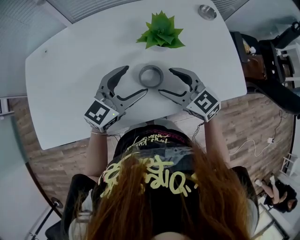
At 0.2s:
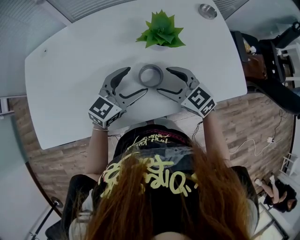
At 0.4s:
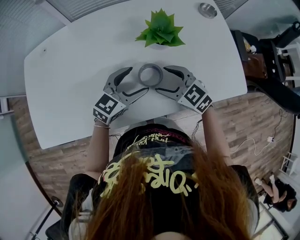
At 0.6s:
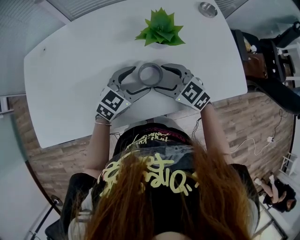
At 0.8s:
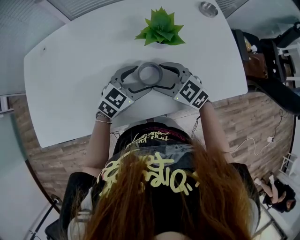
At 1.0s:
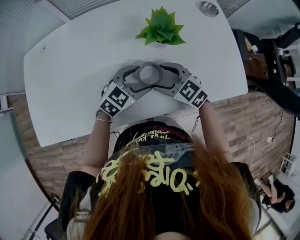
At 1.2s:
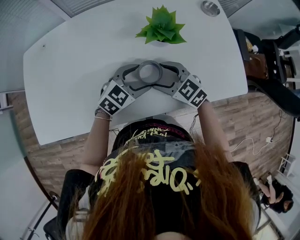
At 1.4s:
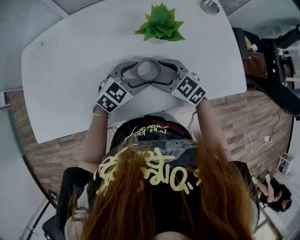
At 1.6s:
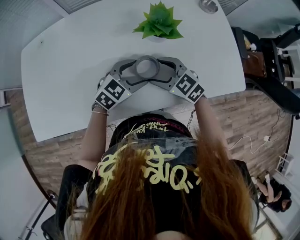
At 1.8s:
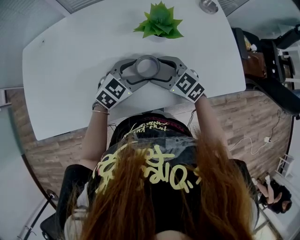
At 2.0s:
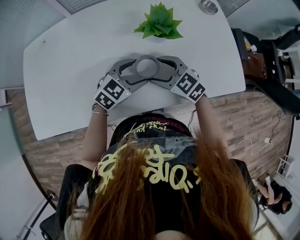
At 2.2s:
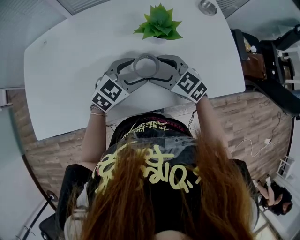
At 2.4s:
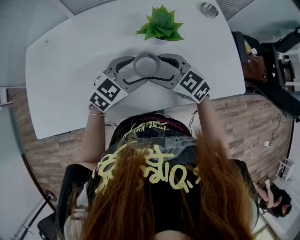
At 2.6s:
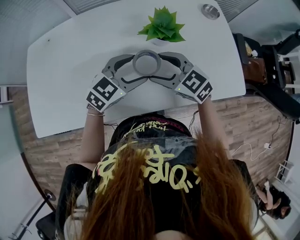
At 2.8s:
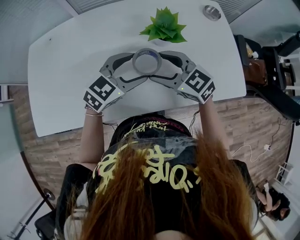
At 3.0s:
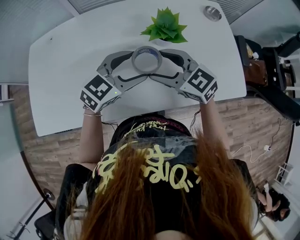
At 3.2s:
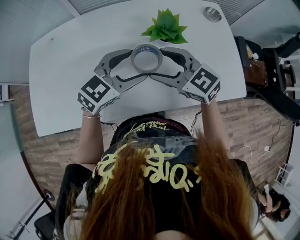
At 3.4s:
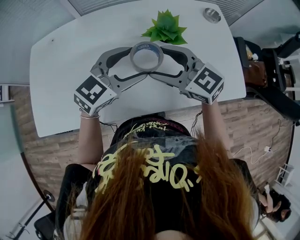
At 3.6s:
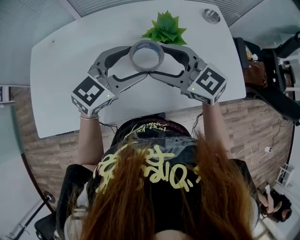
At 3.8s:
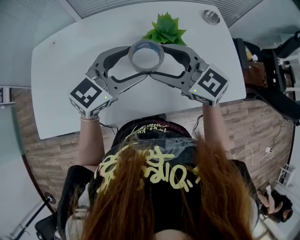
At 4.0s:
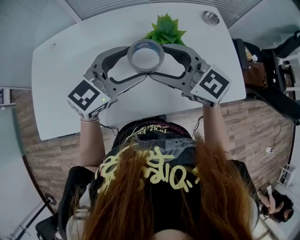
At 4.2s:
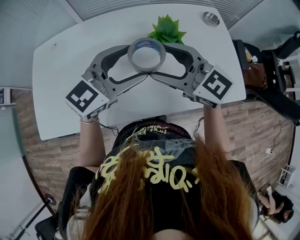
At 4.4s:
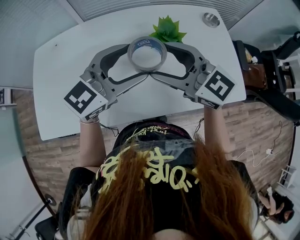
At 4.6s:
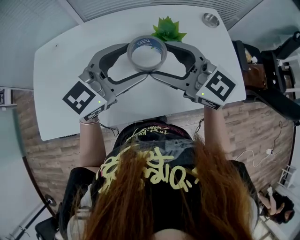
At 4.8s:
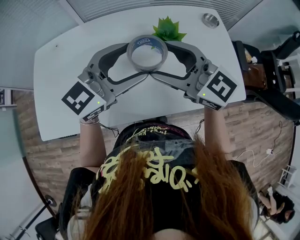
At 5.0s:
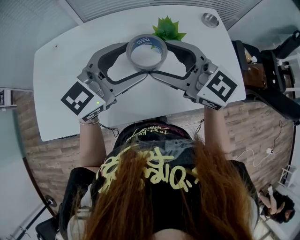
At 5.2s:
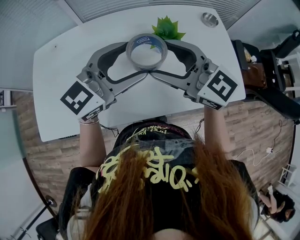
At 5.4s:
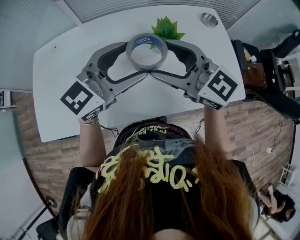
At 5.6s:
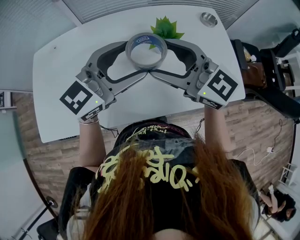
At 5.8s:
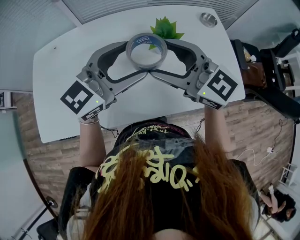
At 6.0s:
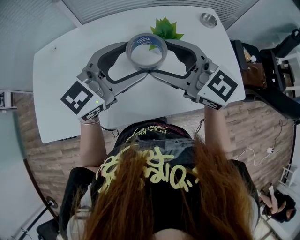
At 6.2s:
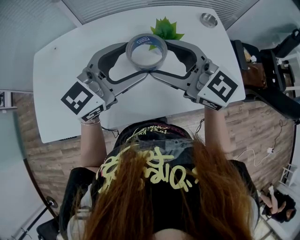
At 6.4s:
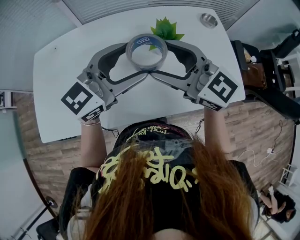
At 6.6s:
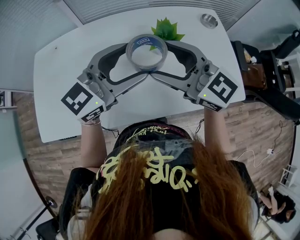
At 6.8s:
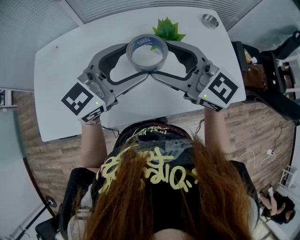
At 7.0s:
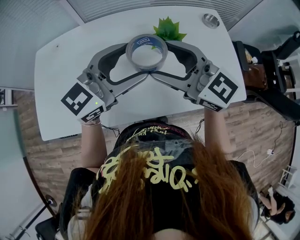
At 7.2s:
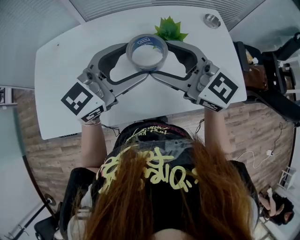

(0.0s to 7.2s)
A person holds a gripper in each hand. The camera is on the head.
0.0s - 1.4s: The right gripper goes about 5 cm downward, while the left gripper is displaced downward by roughly 10 cm, and swivels about 30 degrees.
1.4s - 2.8s: Both grippers move upward, about 10 cm.
2.8s - 4.4s: Both grippers move upward, some 15 cm.
4.4s - 5.8s: The grippers stay close to where they were, moving slightly.
5.8s - 7.2s: The two grippers keep their place.

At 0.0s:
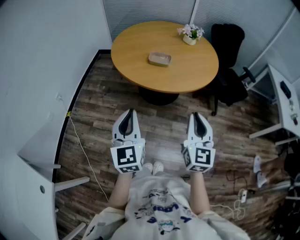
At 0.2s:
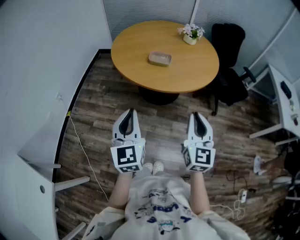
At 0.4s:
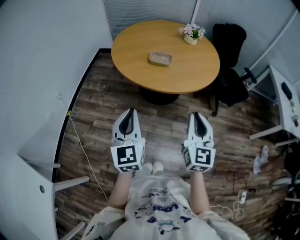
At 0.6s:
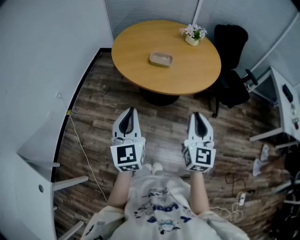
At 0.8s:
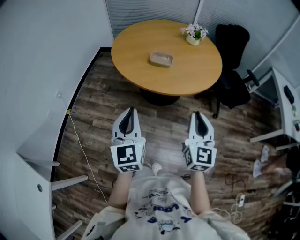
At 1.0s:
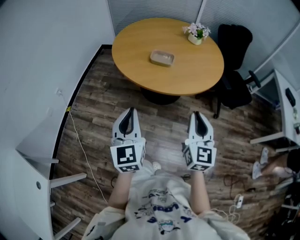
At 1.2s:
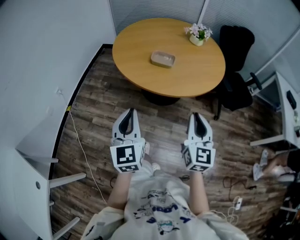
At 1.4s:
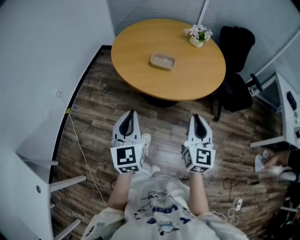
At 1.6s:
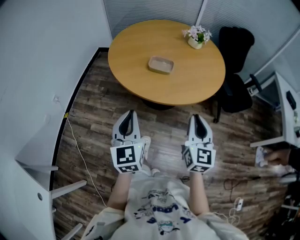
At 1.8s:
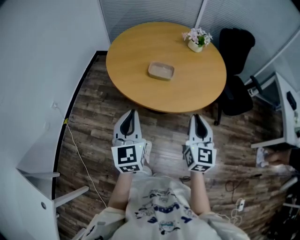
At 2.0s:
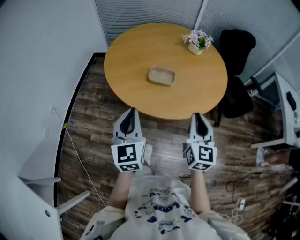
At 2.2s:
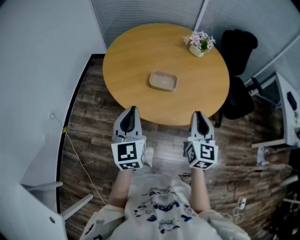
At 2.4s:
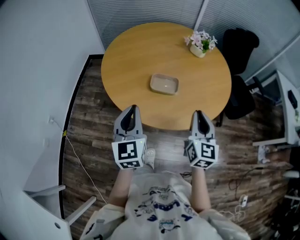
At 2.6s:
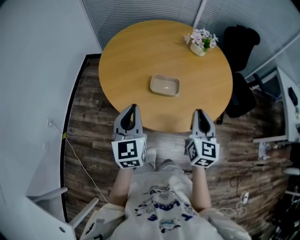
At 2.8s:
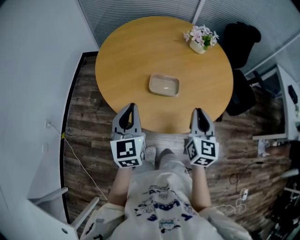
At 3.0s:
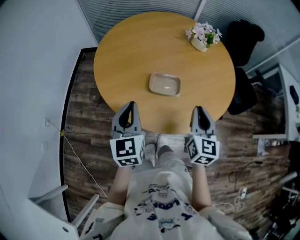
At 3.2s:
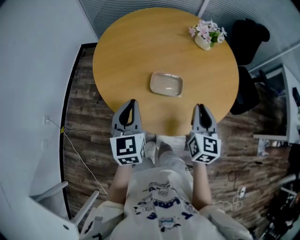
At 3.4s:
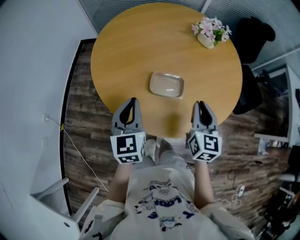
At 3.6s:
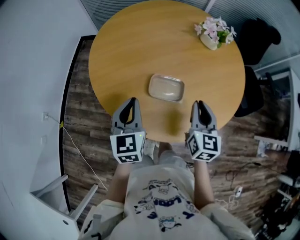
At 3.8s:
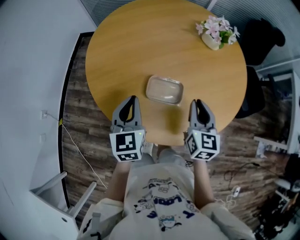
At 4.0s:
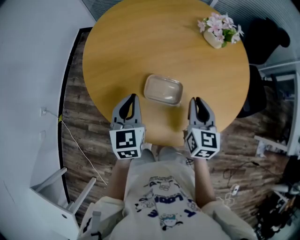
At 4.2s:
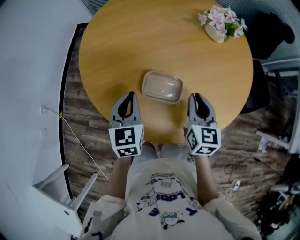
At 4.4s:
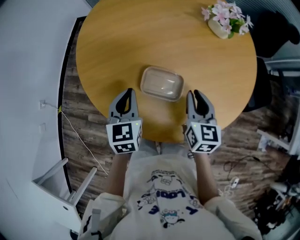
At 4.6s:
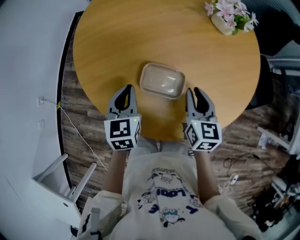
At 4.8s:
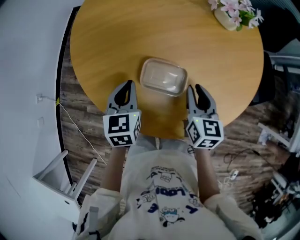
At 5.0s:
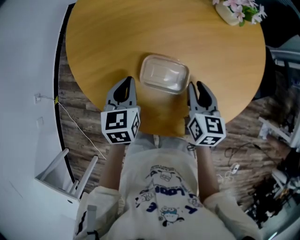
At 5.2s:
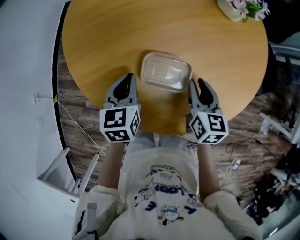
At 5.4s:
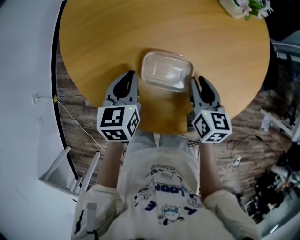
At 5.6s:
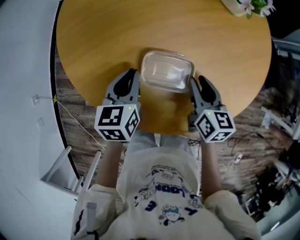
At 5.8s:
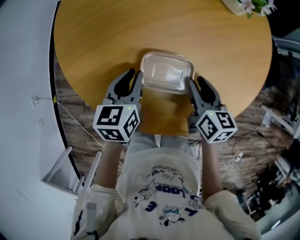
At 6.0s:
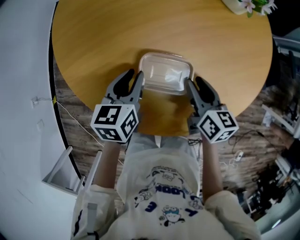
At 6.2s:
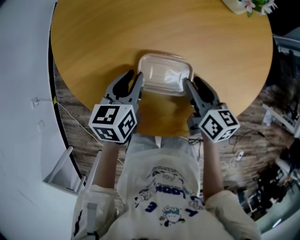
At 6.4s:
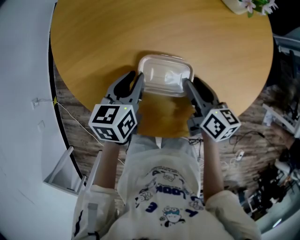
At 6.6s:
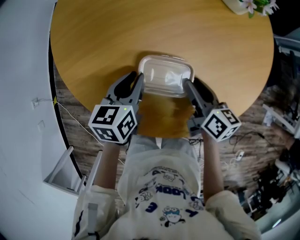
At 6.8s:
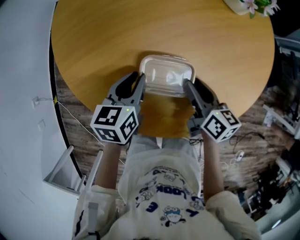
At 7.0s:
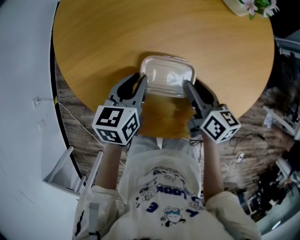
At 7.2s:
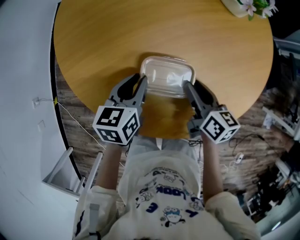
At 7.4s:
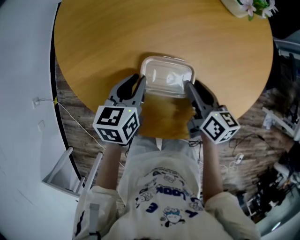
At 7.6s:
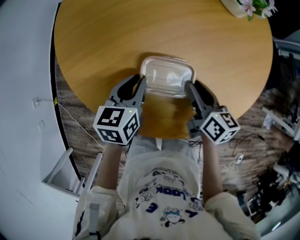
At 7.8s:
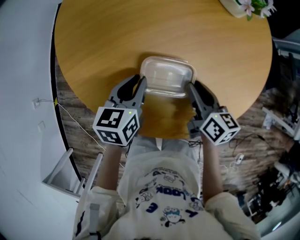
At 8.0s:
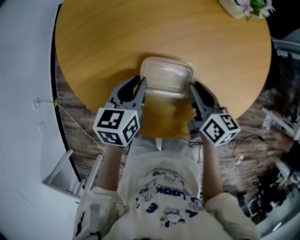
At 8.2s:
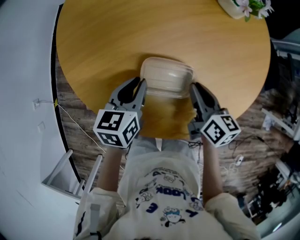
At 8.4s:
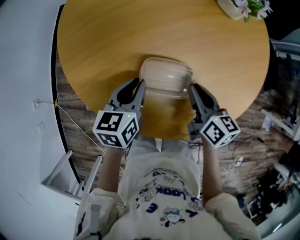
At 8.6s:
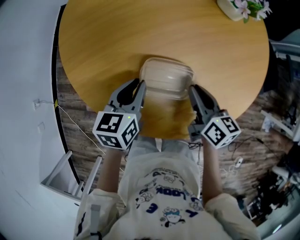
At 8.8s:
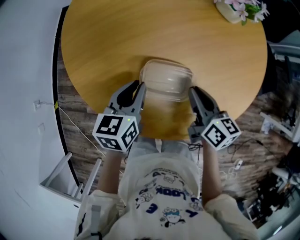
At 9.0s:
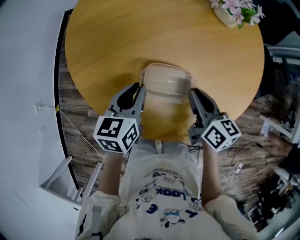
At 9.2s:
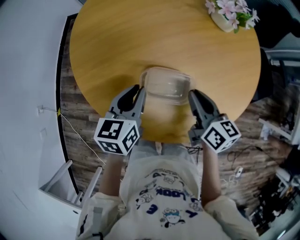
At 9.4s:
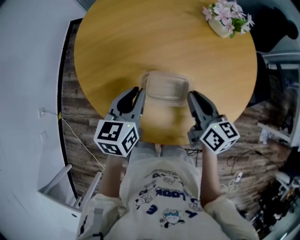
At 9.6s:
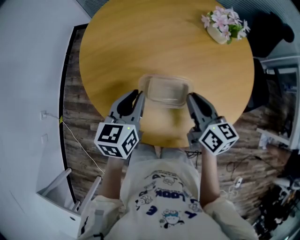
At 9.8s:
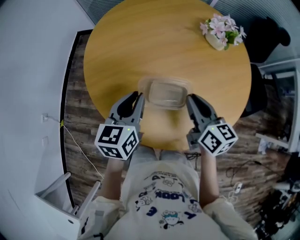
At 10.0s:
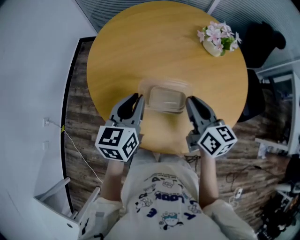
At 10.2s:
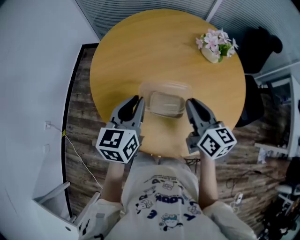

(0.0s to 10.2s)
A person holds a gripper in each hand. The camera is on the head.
0.0s - 1.4s: The grippers both shift forward by some 5 cm.
1.4s - 3.0s: Both grippers move forward, some 30 cm.
3.0s - 4.4s: The right gripper goes some 20 cm forward and downward, and swivels roughly 20 degrees, while the left gripper moves downward and forward, approximately 15 cm.
4.4s - 5.8s: The two grippers go about 5 cm downward. The right gripper turns by some 20 degrees; the left gripper turns by roughly 20 degrees.
5.8s - 8.8s: The grippers move only a little.
8.8s - 10.2s: The two grippers go some 15 cm upward.

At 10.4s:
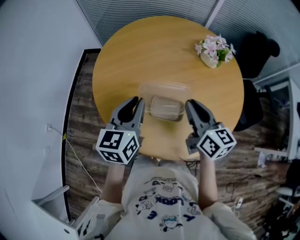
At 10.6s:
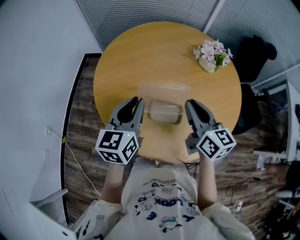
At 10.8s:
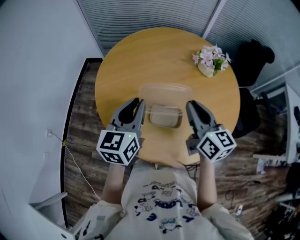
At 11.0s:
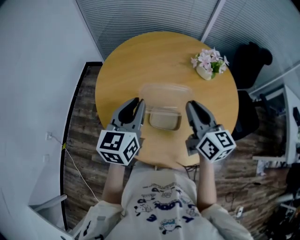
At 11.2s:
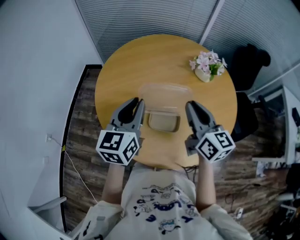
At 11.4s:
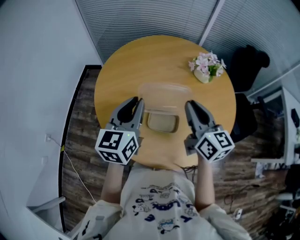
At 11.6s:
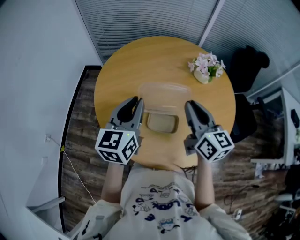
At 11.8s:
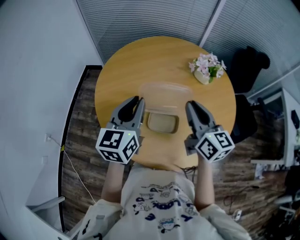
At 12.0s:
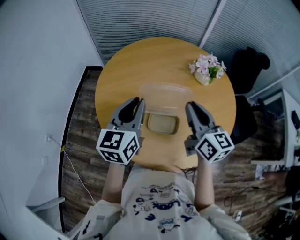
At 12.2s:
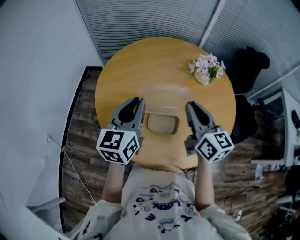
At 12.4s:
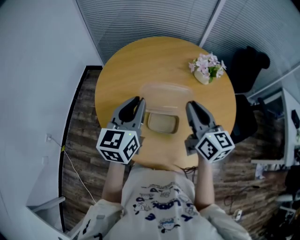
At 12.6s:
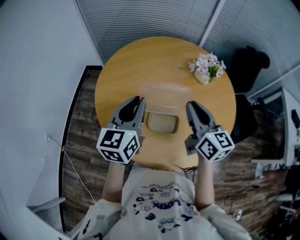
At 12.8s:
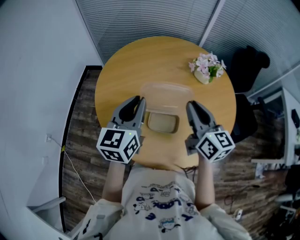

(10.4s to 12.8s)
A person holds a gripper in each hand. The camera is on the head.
10.4s - 11.6s: The grippers both shift upward by some 5 cm.
11.6s - 12.8s: Both grippers stay put.

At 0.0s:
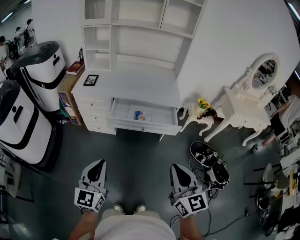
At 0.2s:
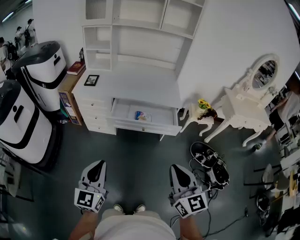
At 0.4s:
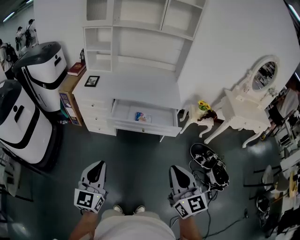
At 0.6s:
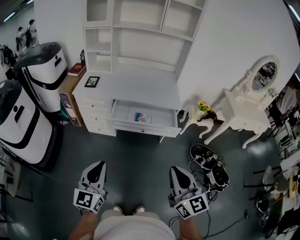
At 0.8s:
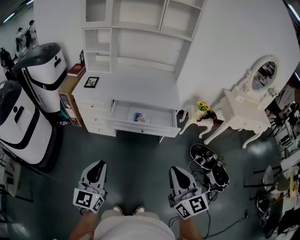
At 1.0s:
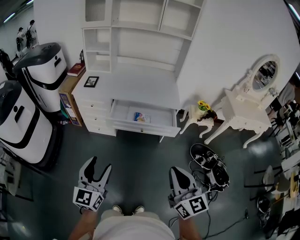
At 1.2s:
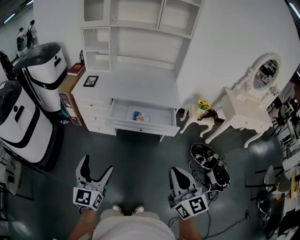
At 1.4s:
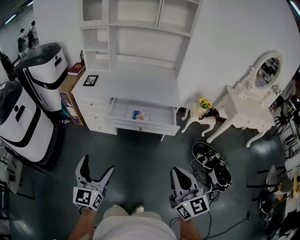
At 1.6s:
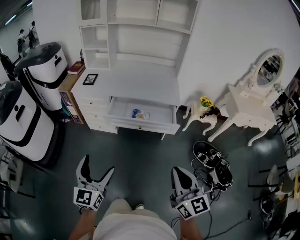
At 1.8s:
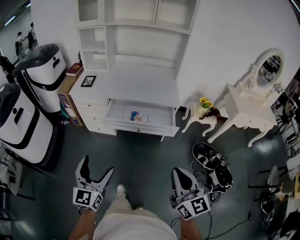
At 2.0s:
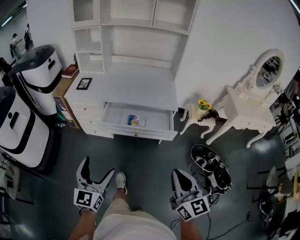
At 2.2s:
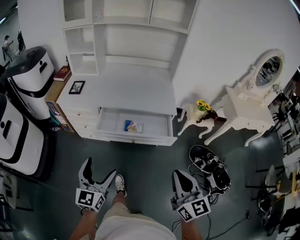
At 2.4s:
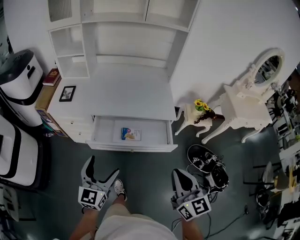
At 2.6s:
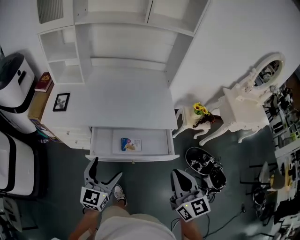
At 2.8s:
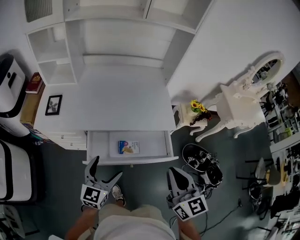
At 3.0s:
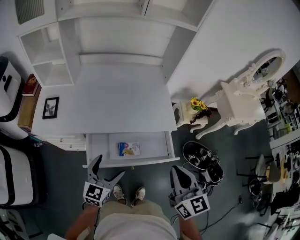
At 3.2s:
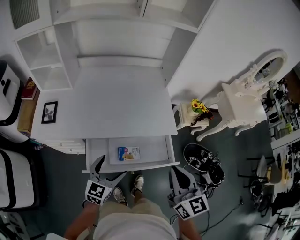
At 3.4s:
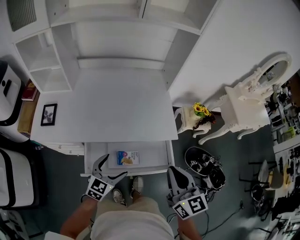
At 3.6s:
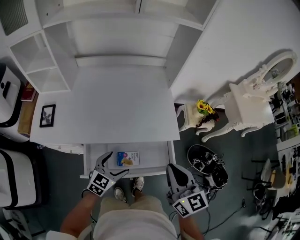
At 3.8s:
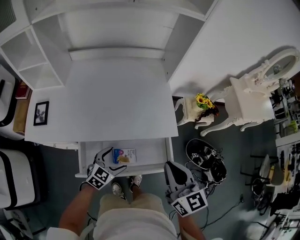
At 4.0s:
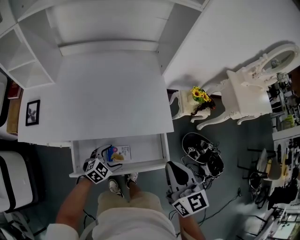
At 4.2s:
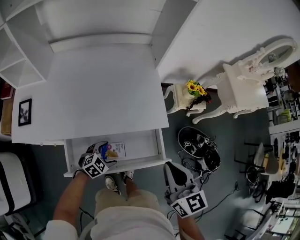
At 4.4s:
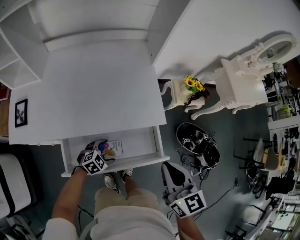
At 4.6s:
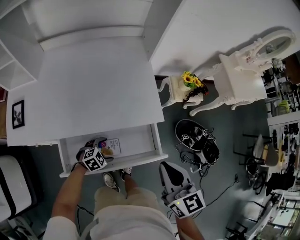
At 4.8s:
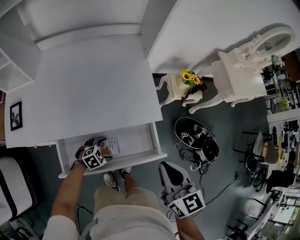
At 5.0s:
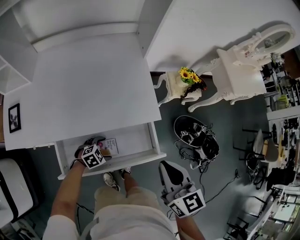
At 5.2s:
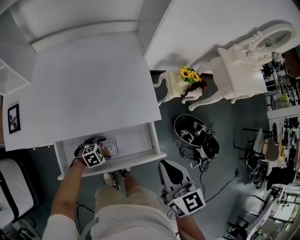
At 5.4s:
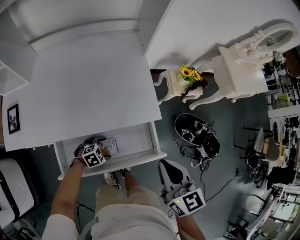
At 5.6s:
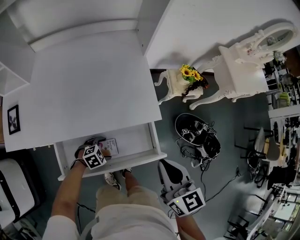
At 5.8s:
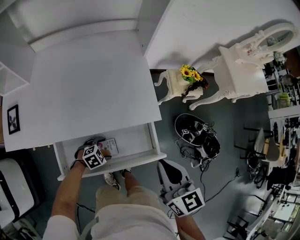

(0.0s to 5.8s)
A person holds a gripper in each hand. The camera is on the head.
0.0s - 1.4s: The right gripper ends up some 5 cm from where it was, while the left gripper opens up.
1.4s - 2.8s: Both grippers travel together forward, roughly 40 cm. The left gripper swivels approximately 30 degrees.
2.8s - 4.4s: The left gripper goes roughly 30 cm downward and forward, and tilts its fingers roughly 40 degrees downward, while the right gripper heads forward and downward, covering approximately 15 cm.
4.4s - 5.8s: The left gripper changes place by about 5 cm.
